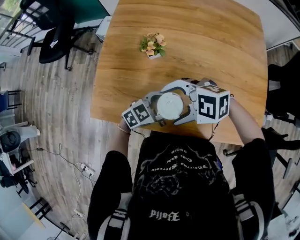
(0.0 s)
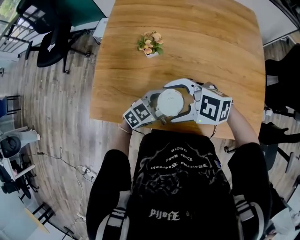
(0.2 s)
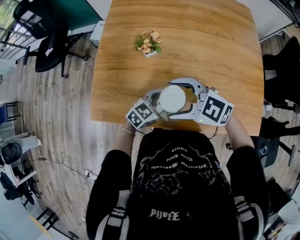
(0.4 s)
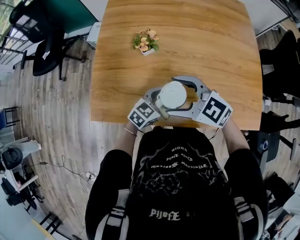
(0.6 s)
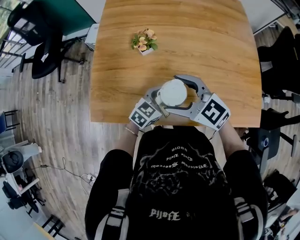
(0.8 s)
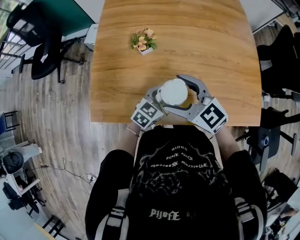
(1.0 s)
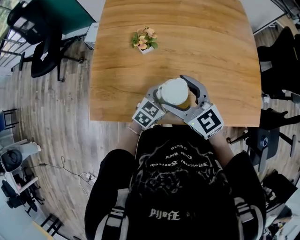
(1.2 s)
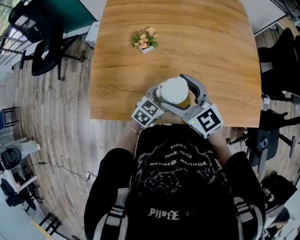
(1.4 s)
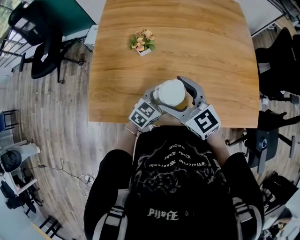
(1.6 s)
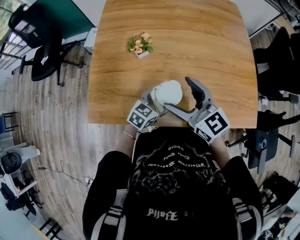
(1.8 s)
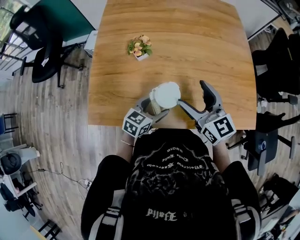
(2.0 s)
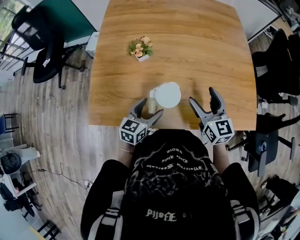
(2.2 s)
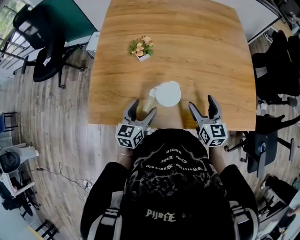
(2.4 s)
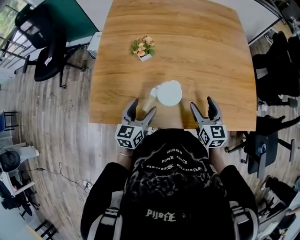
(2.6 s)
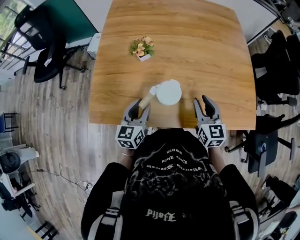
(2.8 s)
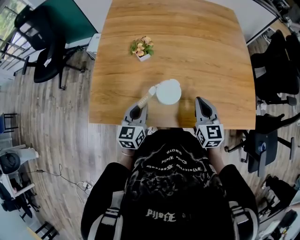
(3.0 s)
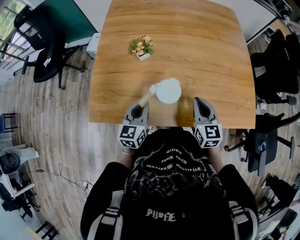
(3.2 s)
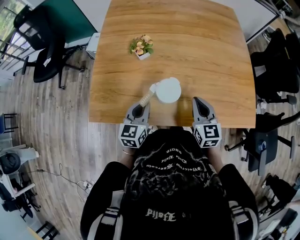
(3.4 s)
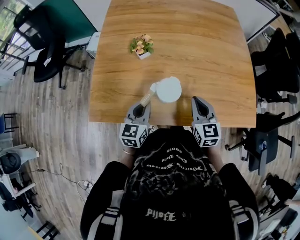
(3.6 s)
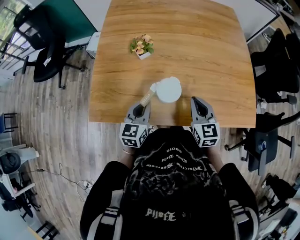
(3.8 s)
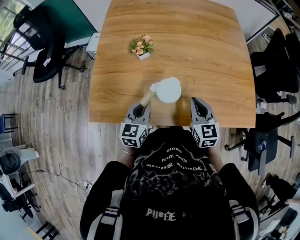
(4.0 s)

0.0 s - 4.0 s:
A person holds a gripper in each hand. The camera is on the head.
0.0 s - 1.4 s: The right gripper turns by approximately 70 degrees.
1.4 s - 2.6 s: The left gripper goes approximately 10 cm to the left and upward, and changes its angle by about 40 degrees. Meanwhile the right gripper heads to the right and downward, covering about 20 cm, and changes its angle by roughly 40 degrees.
2.6 s - 4.0 s: The left gripper closes its fingers. Meanwhile the right gripper closes up.

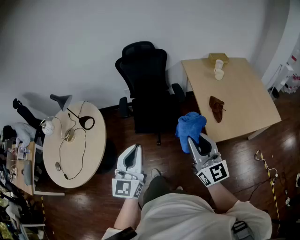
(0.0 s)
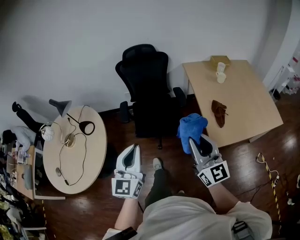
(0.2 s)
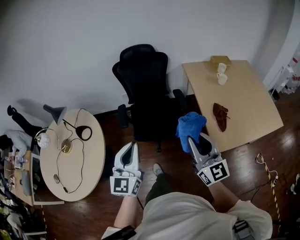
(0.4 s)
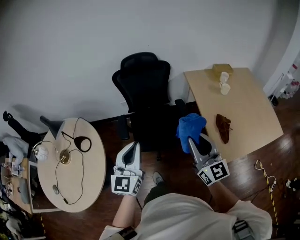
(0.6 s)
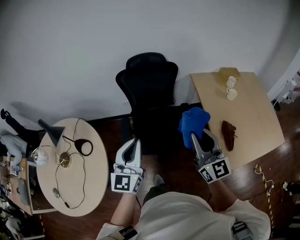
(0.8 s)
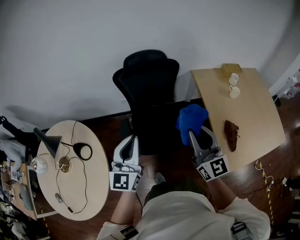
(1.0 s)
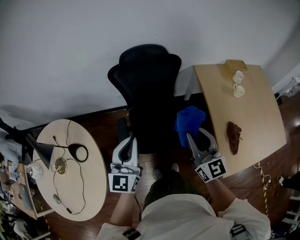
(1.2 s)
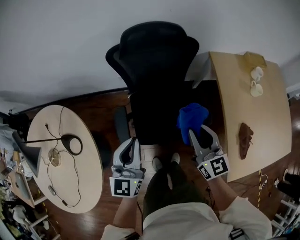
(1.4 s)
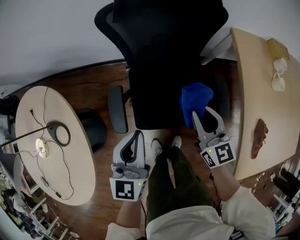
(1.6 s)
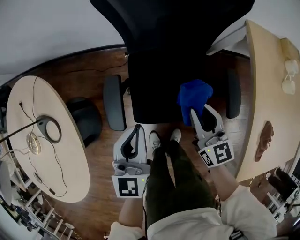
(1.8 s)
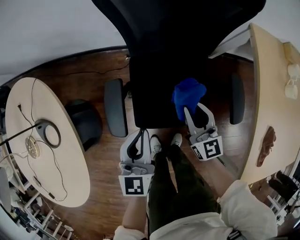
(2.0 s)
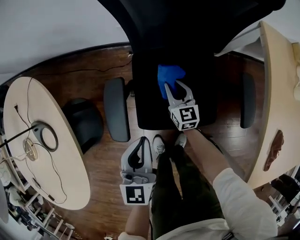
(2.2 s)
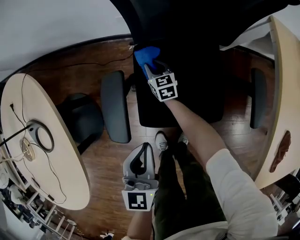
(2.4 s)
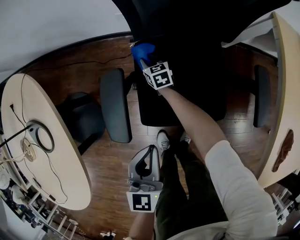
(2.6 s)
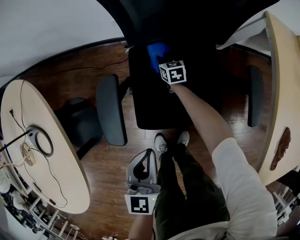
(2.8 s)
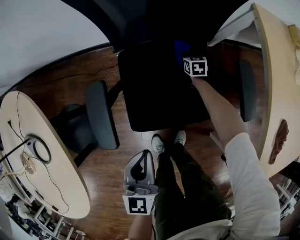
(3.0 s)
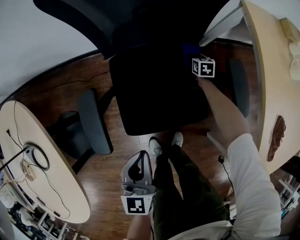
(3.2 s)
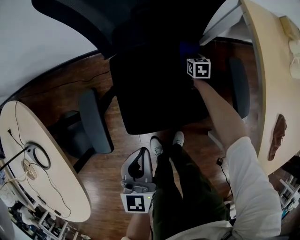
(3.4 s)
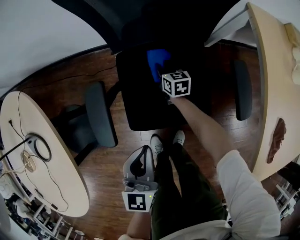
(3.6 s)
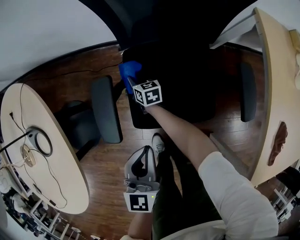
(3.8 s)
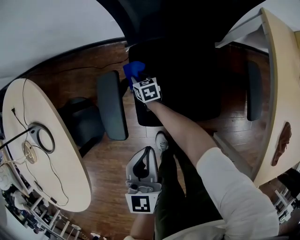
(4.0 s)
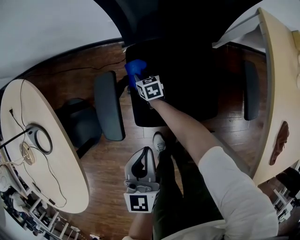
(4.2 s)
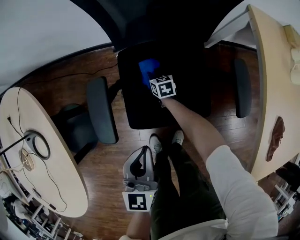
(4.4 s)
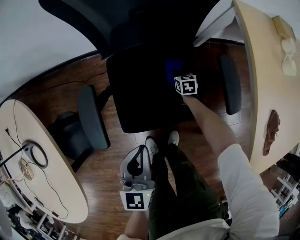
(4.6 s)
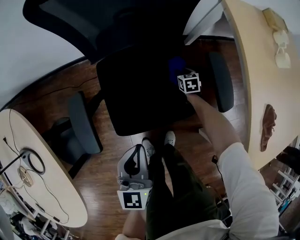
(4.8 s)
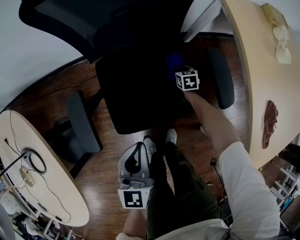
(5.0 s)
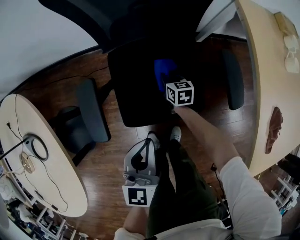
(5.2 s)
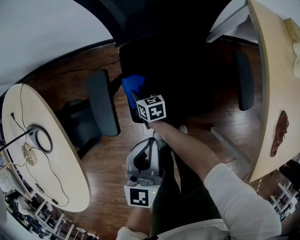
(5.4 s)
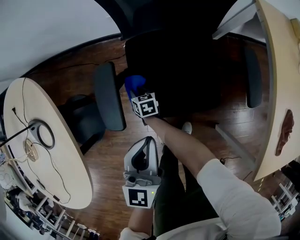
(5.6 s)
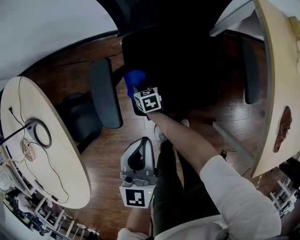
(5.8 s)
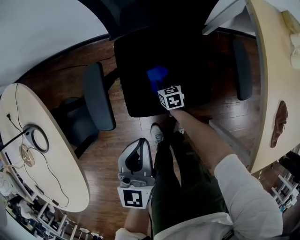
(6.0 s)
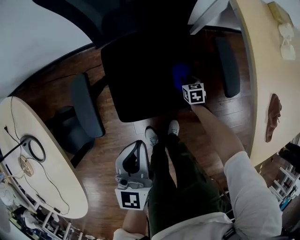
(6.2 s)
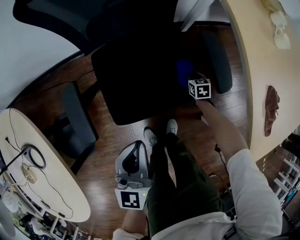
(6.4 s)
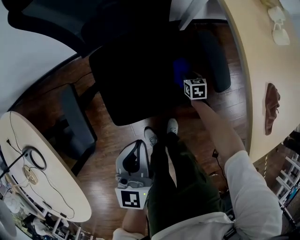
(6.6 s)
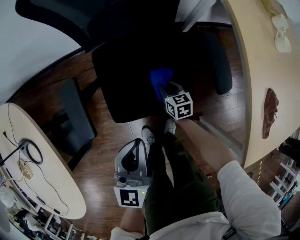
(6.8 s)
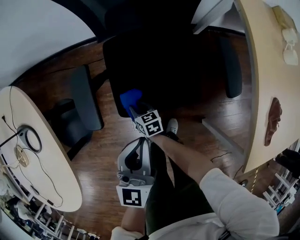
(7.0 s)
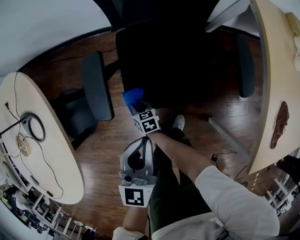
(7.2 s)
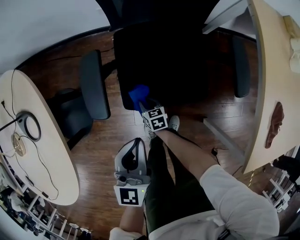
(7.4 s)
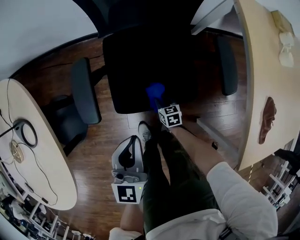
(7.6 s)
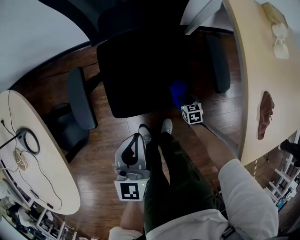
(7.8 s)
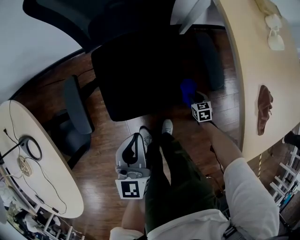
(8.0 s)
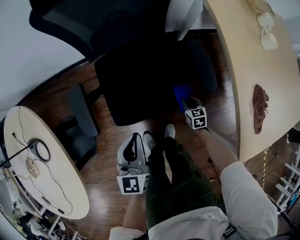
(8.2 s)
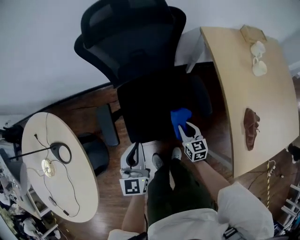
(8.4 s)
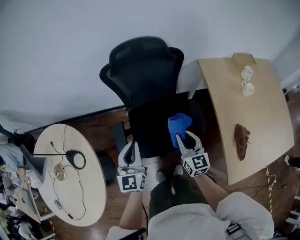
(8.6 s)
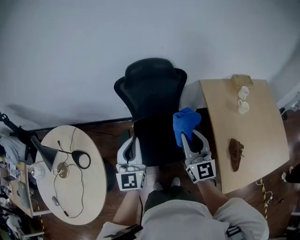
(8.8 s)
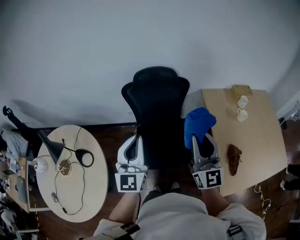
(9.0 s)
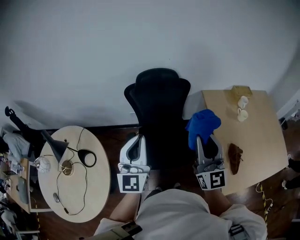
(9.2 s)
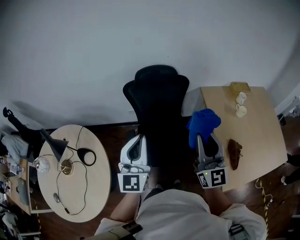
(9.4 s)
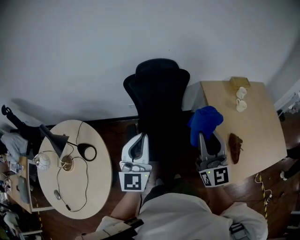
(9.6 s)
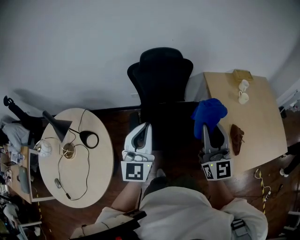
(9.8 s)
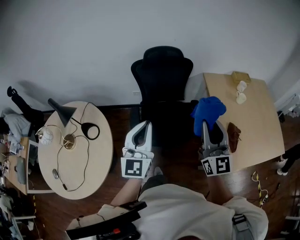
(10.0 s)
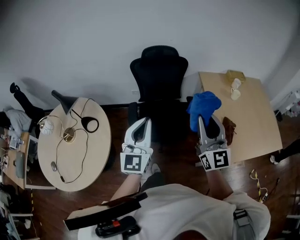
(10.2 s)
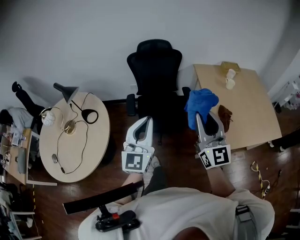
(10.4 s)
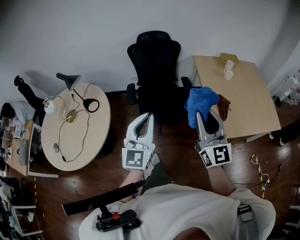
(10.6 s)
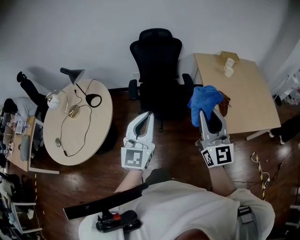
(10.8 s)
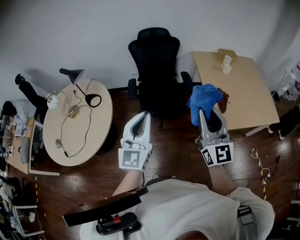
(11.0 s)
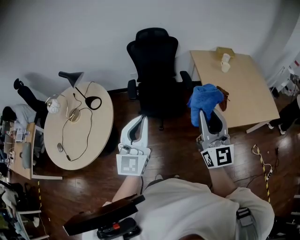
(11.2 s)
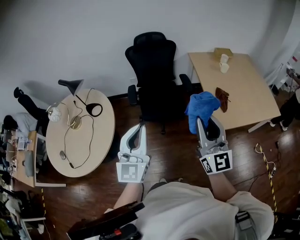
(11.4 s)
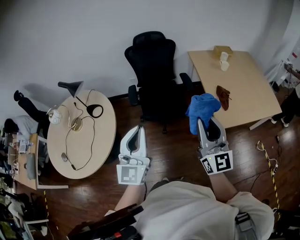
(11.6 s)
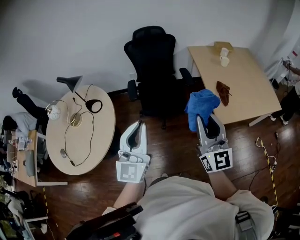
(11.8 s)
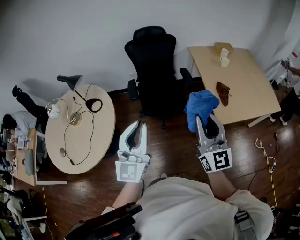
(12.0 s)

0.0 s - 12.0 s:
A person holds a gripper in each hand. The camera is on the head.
0.0 s - 1.6 s: Both grippers are carried forward, roughly 70 cm. Both grippers travel together downward, approximately 35 cm. The right gripper changes its angle by approximately 30 degrees.
1.6 s - 3.0 s: The left gripper travels downward by some 30 cm. The right gripper moves downward, roughly 60 cm, and tips its fingers downward by roughly 40 degrees.
3.0 s - 4.4 s: The right gripper goes left and right, some 40 cm each way, reversing 2 times.
4.4 s - 6.0 s: The left gripper reaches roughly 5 cm to the right, then returns; the right gripper moves left and right over about 40 cm, changing direction 2 times.
6.0 s - 7.6 s: The right gripper swings left and right, some 40 cm each way, with 2 reversals. Meanwhile the left gripper reaches some 10 cm to the right, then returns.
7.6 s - 9.0 s: The right gripper heads upward, covering some 1 m, and tilts its fingers roughly 80 degrees upward, while the left gripper heads upward and backward, covering some 50 cm, and rotates approximately 30 degrees.
9.0 s - 10.4 s: Both grippers move backward, roughly 35 cm.
10.4 s - 12.0 s: The two grippers go about 15 cm backward.

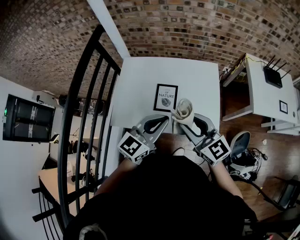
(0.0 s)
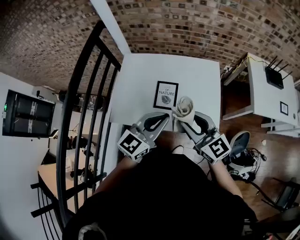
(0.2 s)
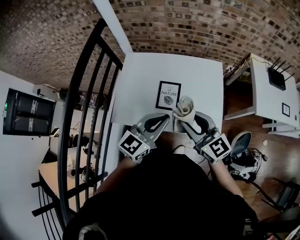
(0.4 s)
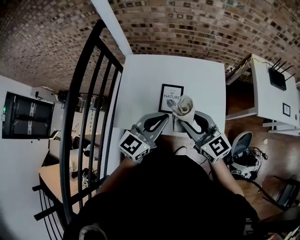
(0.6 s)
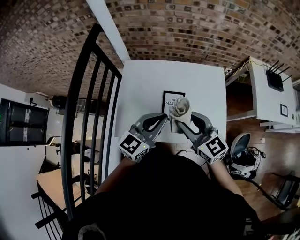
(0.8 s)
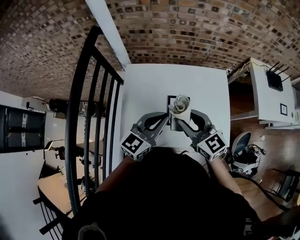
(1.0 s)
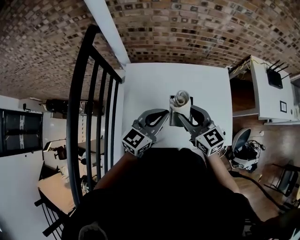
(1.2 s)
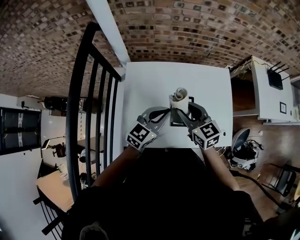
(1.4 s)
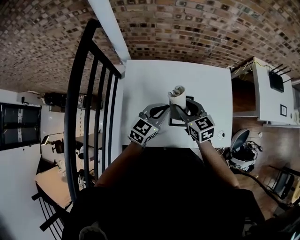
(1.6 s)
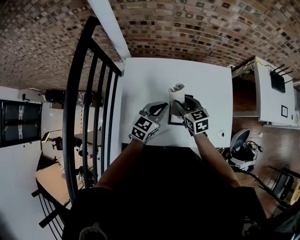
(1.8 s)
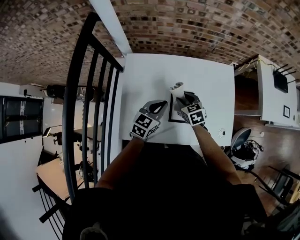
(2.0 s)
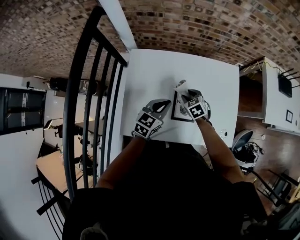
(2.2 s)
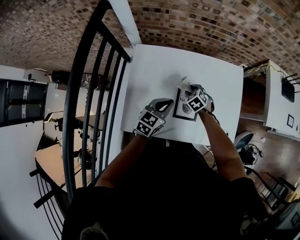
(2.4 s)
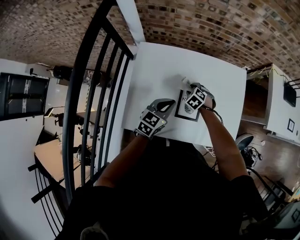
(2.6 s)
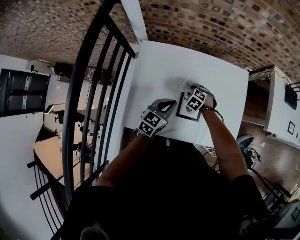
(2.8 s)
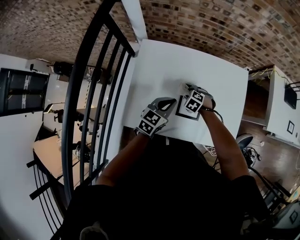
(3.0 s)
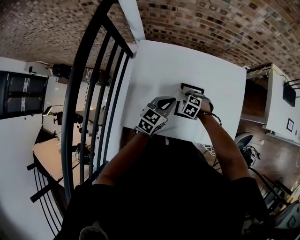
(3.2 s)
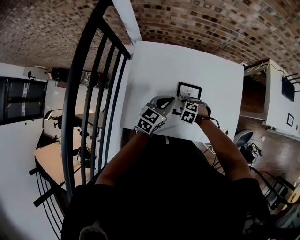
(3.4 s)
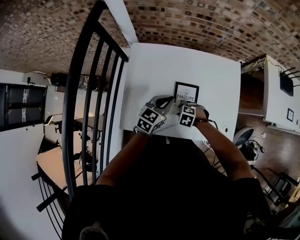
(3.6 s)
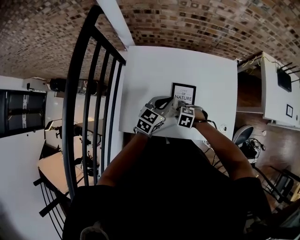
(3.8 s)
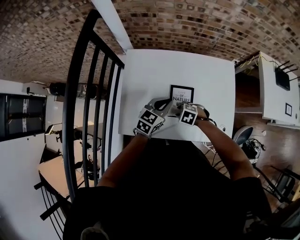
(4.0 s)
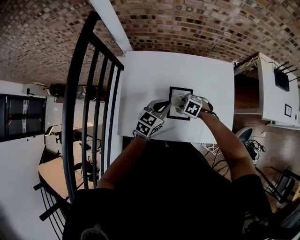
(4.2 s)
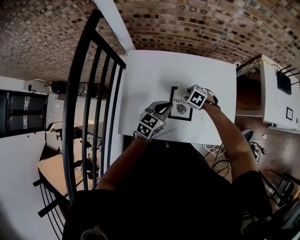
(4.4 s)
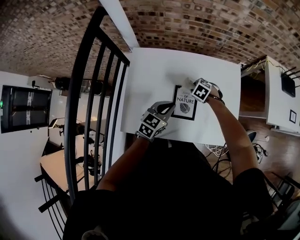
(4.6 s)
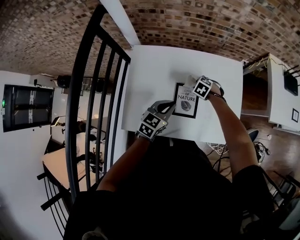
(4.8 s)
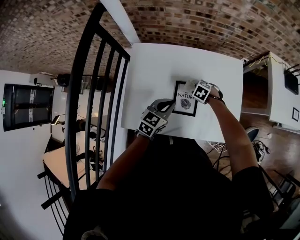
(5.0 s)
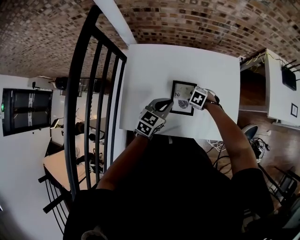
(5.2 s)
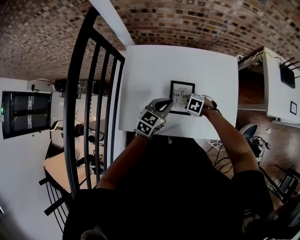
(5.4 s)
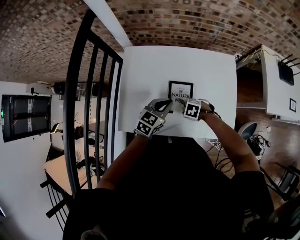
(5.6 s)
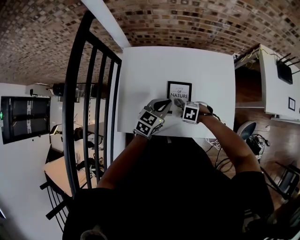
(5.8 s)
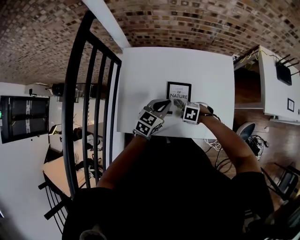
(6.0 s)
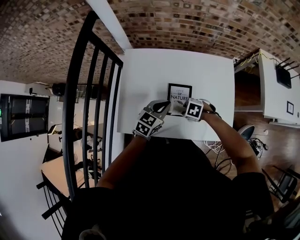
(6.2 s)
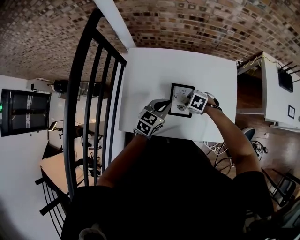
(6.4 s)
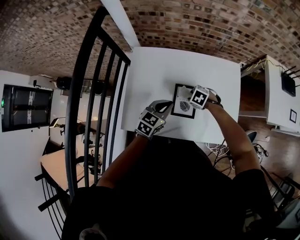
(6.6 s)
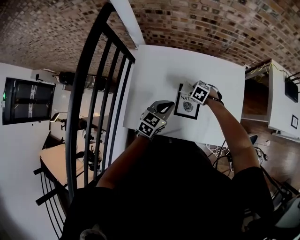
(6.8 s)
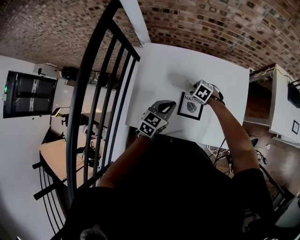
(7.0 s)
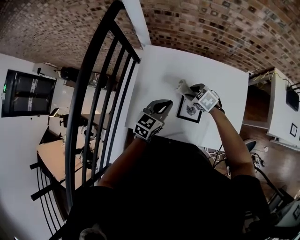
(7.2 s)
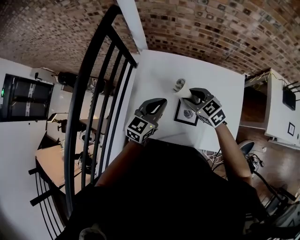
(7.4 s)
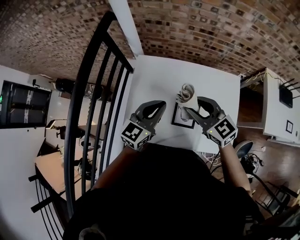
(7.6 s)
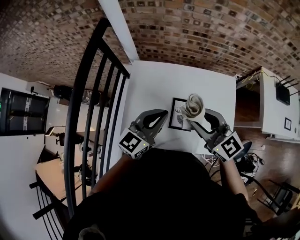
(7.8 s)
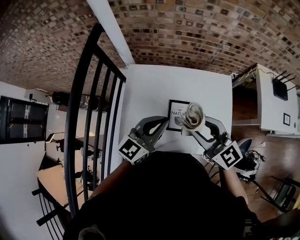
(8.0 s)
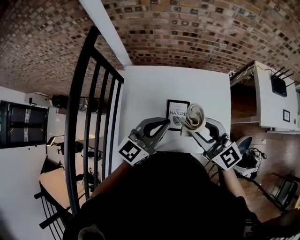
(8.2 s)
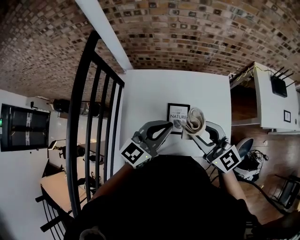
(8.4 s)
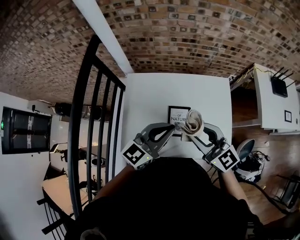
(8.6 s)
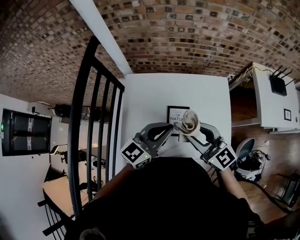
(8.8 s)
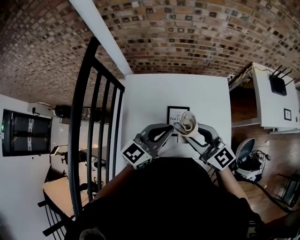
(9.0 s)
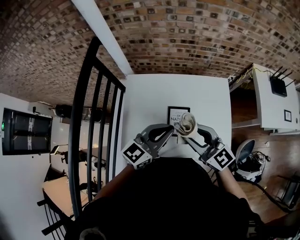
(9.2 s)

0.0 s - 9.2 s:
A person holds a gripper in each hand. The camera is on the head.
0.0 s - 1.6 s: Both grippers move forward, to the left and downward, some 30 cm. The right gripper swivels some 30 degrees.
1.6 s - 3.0 s: The right gripper shifts about 25 cm downward, and tips its fingers downward by about 50 degrees, while the left gripper goes about 10 cm downward.
3.0 s - 4.6 s: The left gripper shifts by roughly 5 cm; the right gripper shifts by approximately 10 cm.
4.6 s - 6.2 s: The right gripper shifts by some 15 cm.
6.2 s - 7.6 s: The right gripper is displaced upward by some 30 cm, and points its fingers roughly 50 degrees further upward, while the left gripper moves upward, about 15 cm, and rotates some 20 degrees.
7.6 s - 9.2 s: The right gripper goes some 10 cm backward and to the right, while the left gripper is displaced to the right, backward and upward by some 10 cm.
